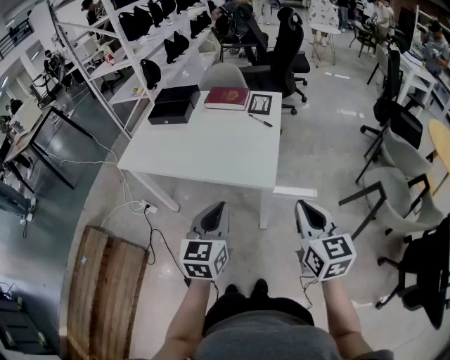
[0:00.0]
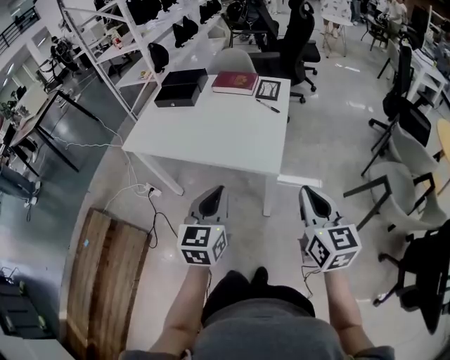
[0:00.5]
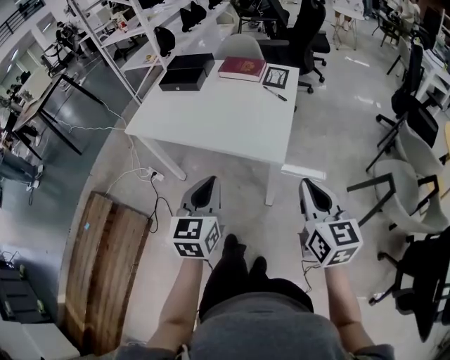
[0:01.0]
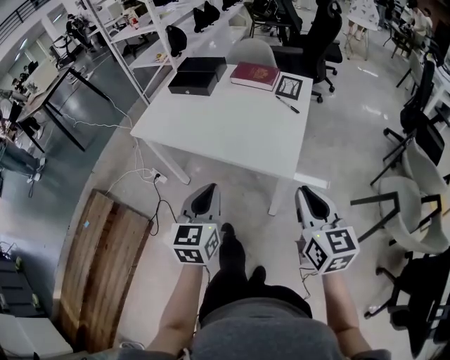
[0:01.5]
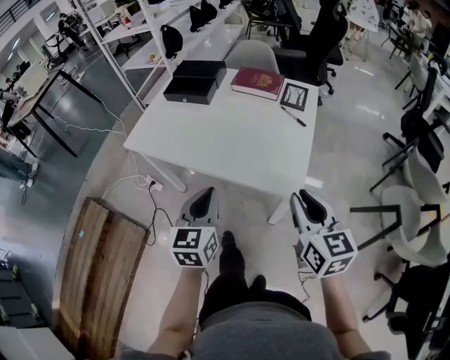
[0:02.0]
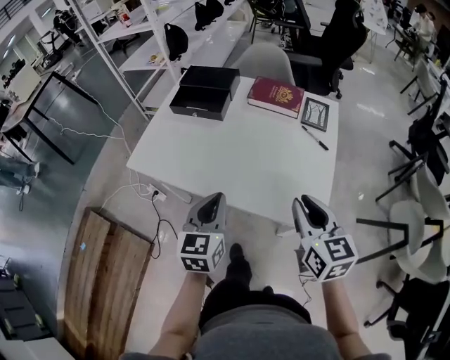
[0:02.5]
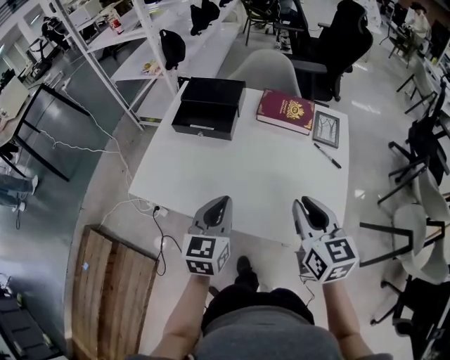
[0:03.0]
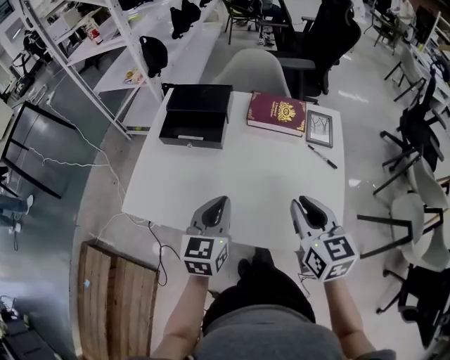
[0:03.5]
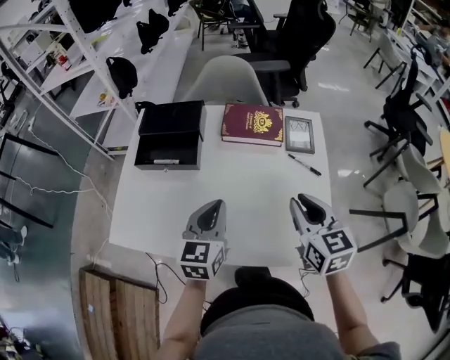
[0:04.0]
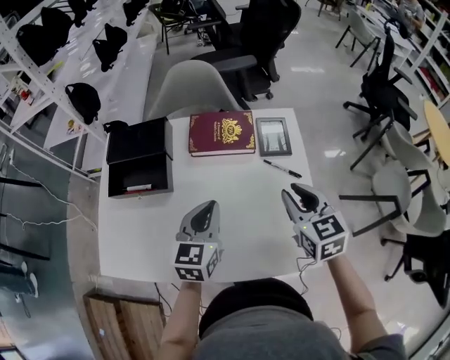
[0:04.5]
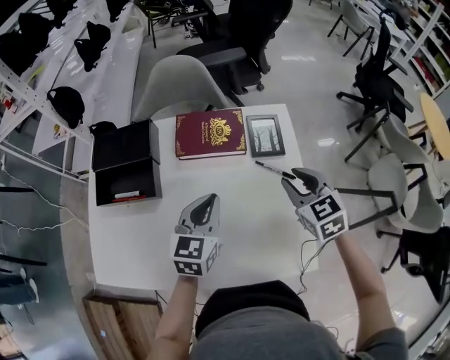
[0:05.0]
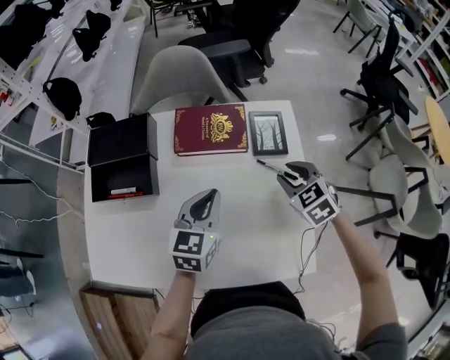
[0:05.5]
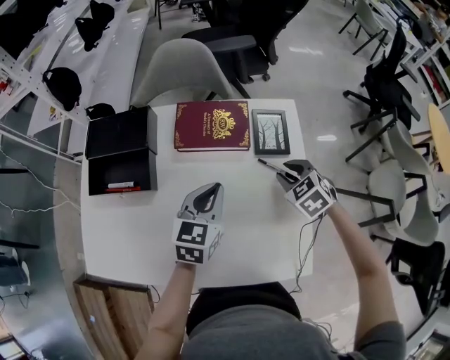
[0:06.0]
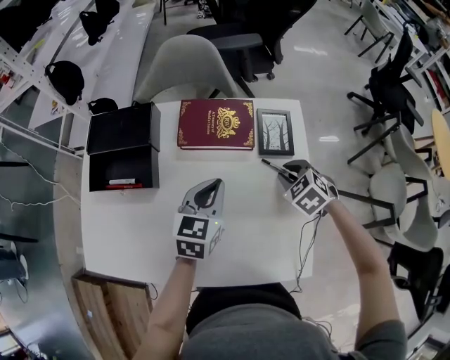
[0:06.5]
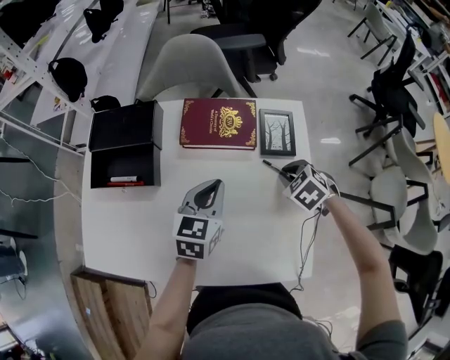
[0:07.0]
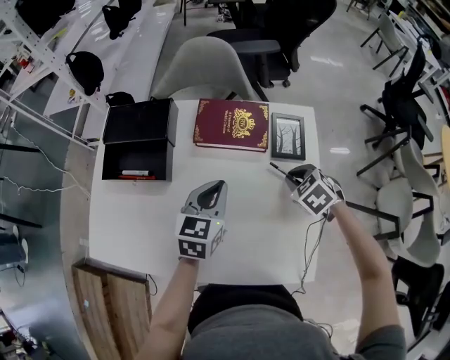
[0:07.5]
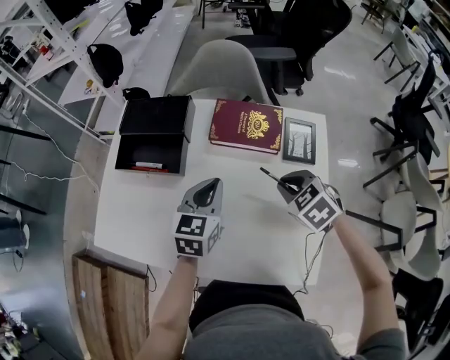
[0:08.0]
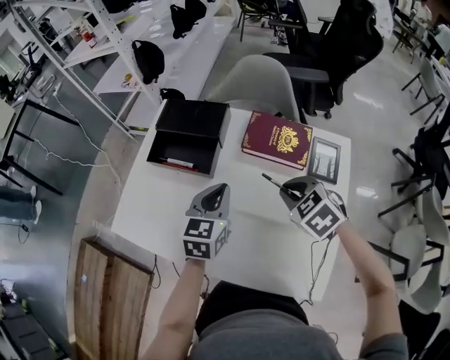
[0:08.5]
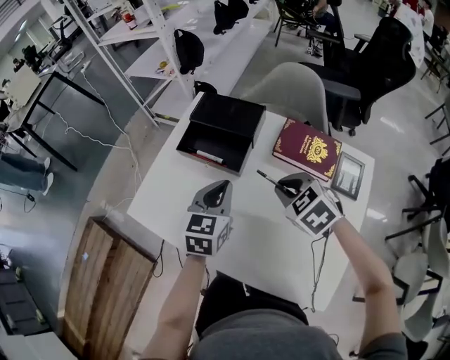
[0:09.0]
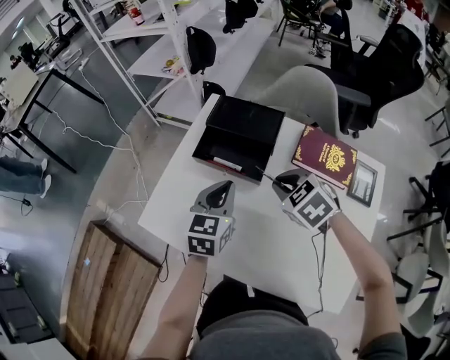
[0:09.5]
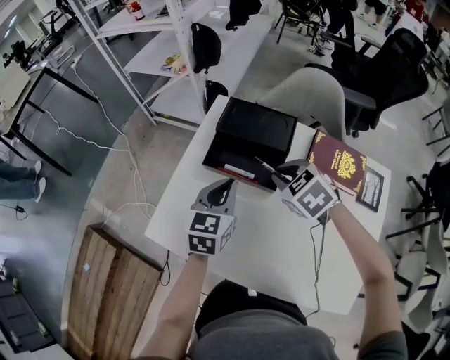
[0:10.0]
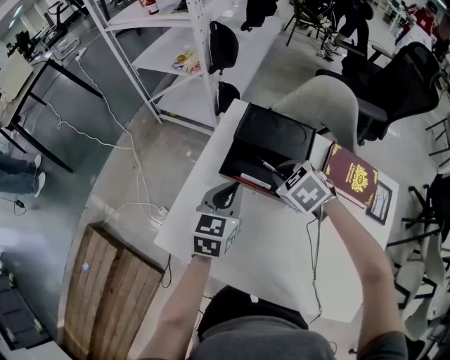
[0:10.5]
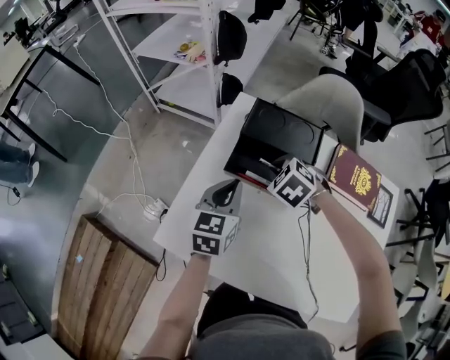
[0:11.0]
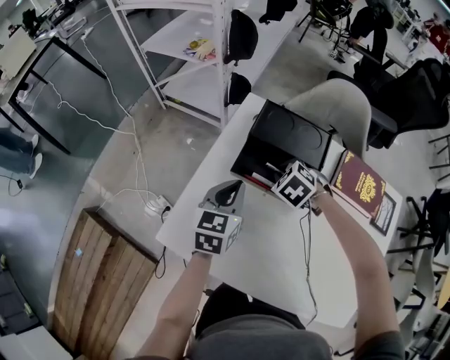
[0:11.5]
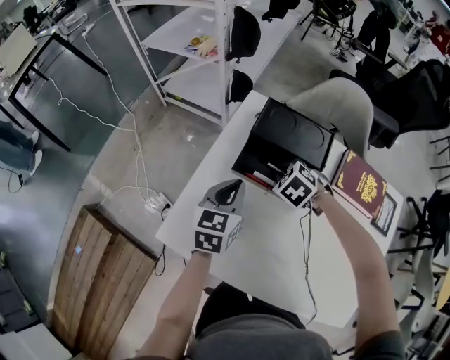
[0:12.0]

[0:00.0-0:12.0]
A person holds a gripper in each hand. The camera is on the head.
0:00.0 to 0:02.0: The two grippers go approximately 15 cm forward and to the left.
0:02.0 to 0:04.0: Both grippers travel together forward, about 25 cm.
0:04.0 to 0:06.0: The left gripper heads forward and to the right, covering some 15 cm. Meanwhile the right gripper goes roughly 25 cm forward, downward and to the right, and points its fingers approximately 30 degrees further downward.
0:06.0 to 0:08.0: The two grippers go roughly 10 cm to the left.
0:08.0 to 0:10.0: The grippers both shift to the left and forward by roughly 25 cm.
0:10.0 to 0:12.0: The right gripper shifts roughly 15 cm downward, forward and to the left. Meanwhile the left gripper goes approximately 5 cm to the left.

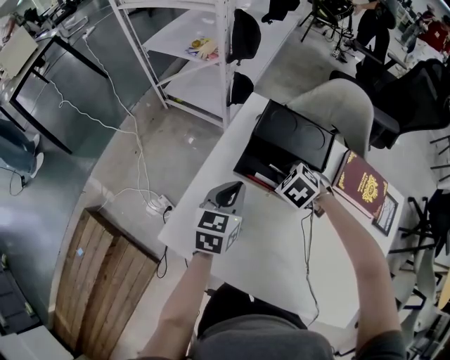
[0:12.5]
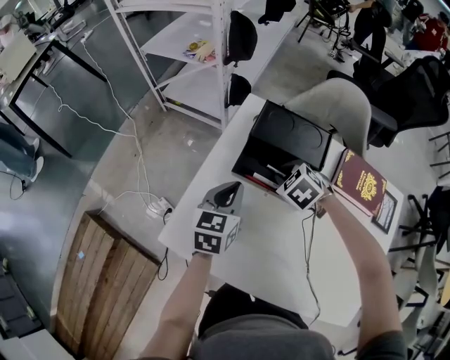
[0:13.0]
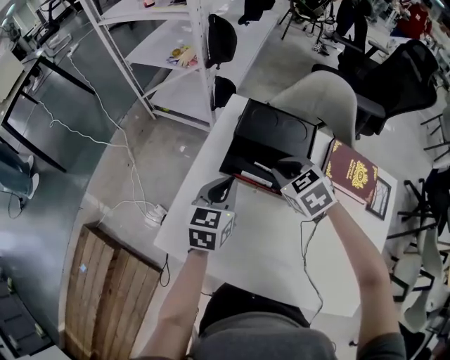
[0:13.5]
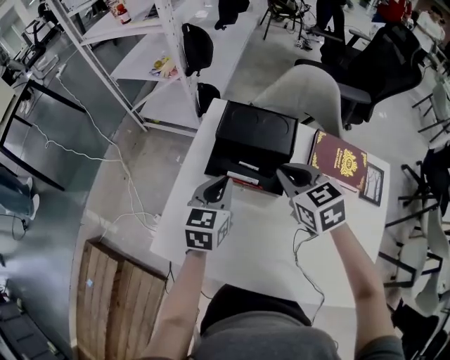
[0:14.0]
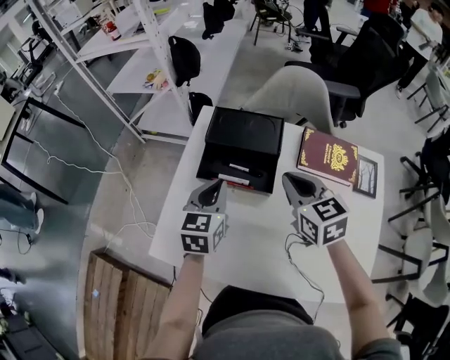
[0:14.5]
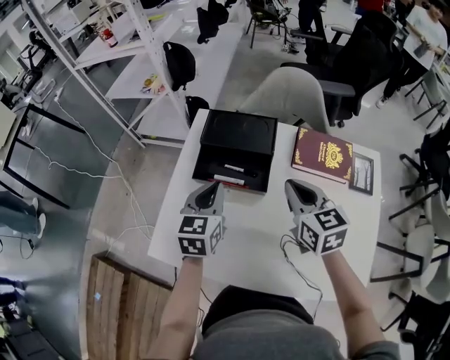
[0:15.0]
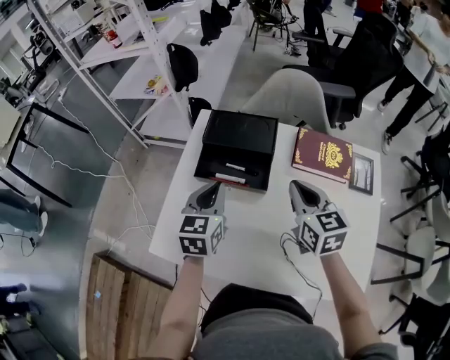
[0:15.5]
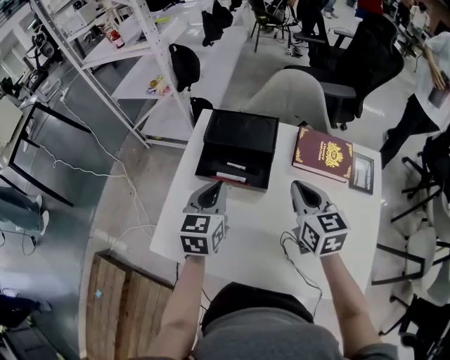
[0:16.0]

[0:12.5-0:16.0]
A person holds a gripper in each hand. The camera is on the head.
0:12.5 to 0:14.5: The left gripper shifts some 5 cm to the right. The right gripper travels upward, to the right and backward by approximately 20 cm, and points its fingers approximately 40 degrees further upward.
0:14.5 to 0:16.0: The right gripper ends up roughly 5 cm from where it was.

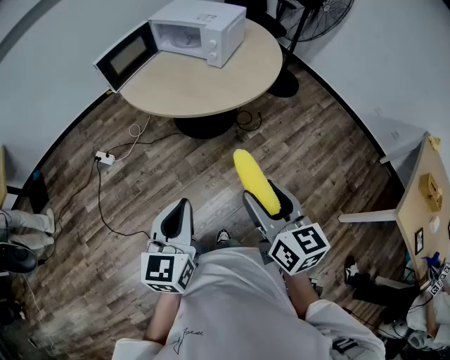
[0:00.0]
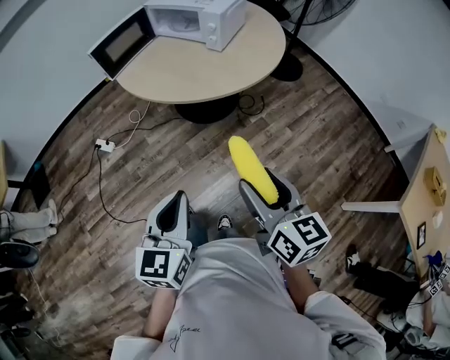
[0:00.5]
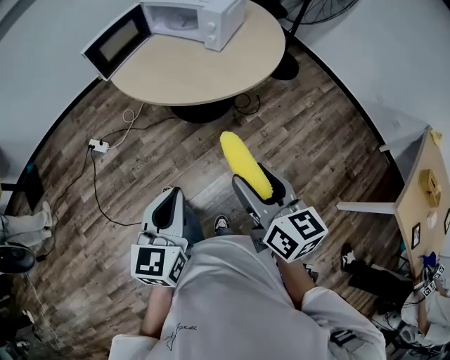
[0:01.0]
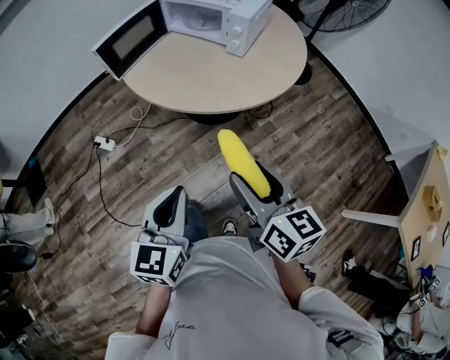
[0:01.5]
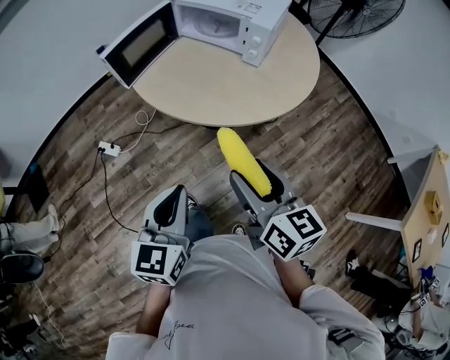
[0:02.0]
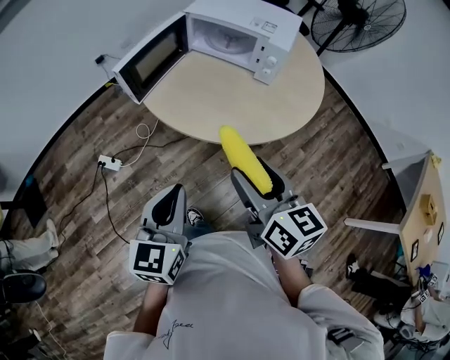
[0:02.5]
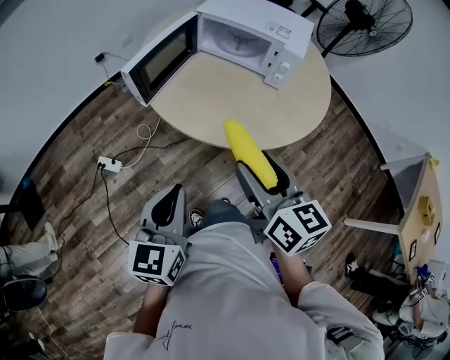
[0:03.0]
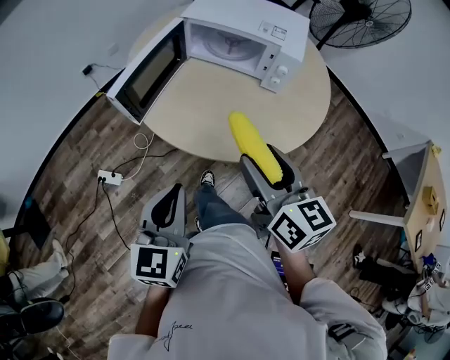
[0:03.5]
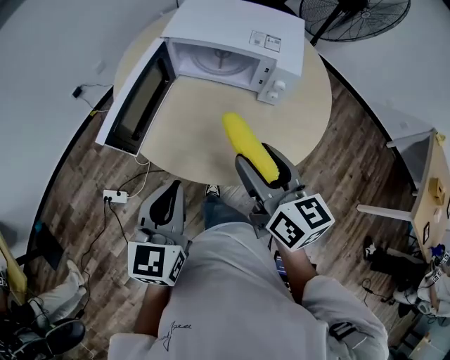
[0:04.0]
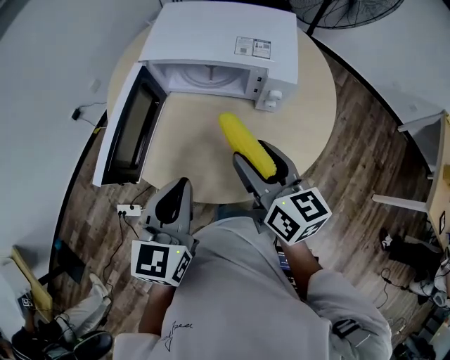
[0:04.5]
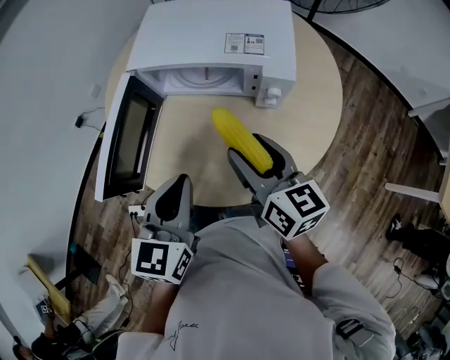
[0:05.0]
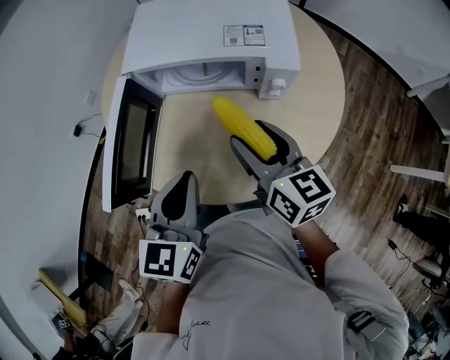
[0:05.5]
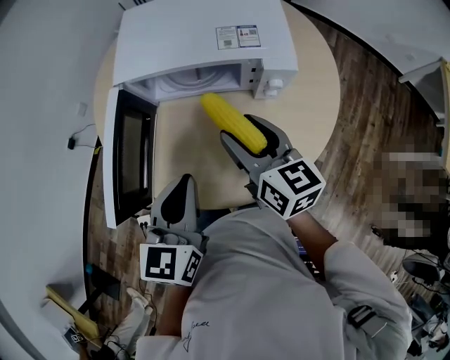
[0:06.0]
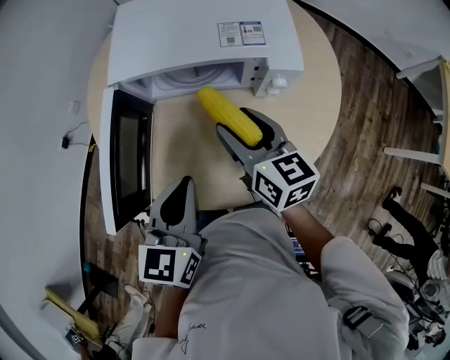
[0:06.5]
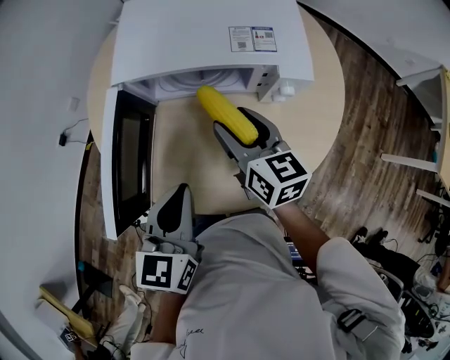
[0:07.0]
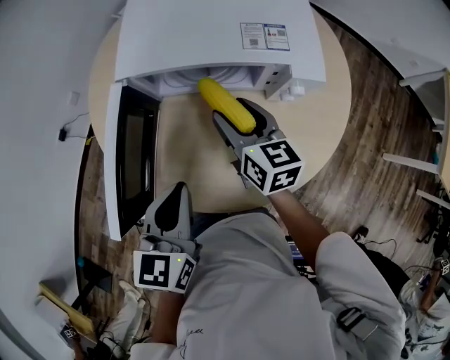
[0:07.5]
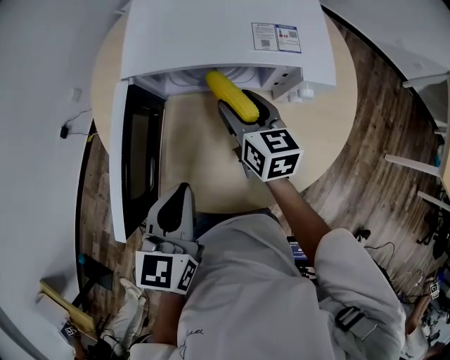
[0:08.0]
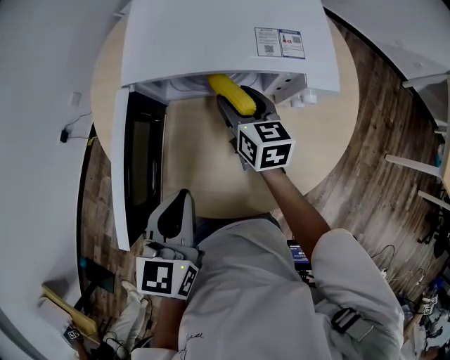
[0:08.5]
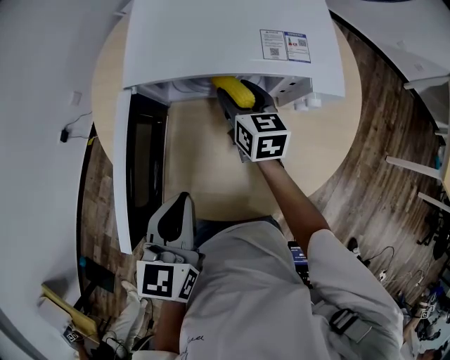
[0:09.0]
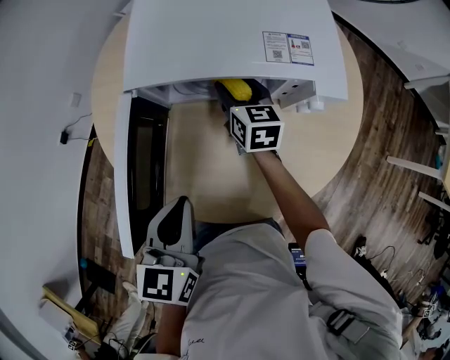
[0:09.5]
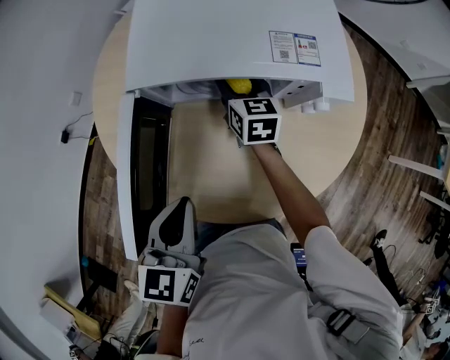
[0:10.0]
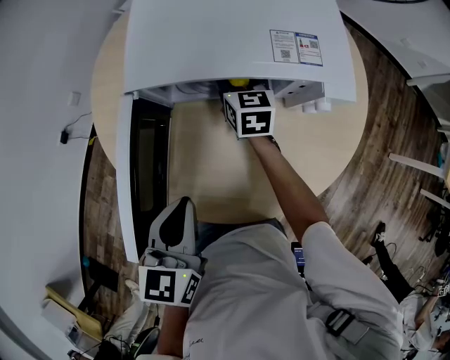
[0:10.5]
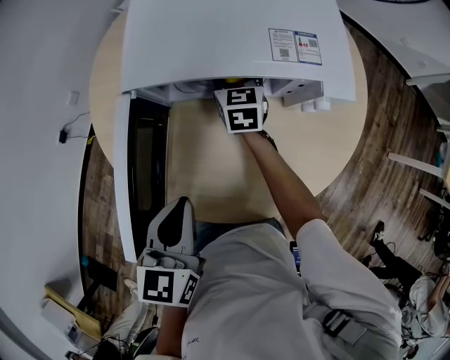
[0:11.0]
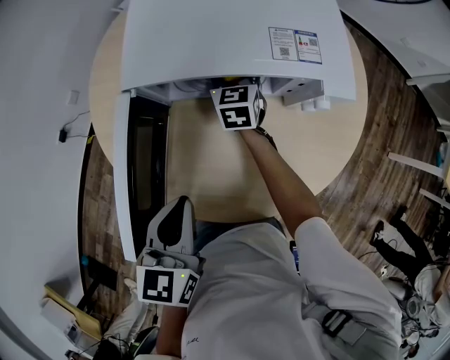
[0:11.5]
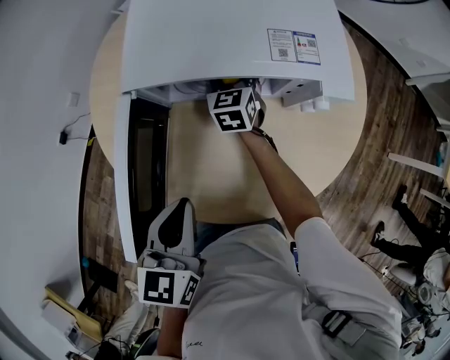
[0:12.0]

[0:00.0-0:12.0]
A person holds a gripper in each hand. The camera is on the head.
0:00.0 to 0:02.0: The two grippers go some 25 cm forward and to the left.
0:02.0 to 0:04.0: The two grippers go roughly 30 cm forward.
0:04.0 to 0:06.0: The right gripper shifts approximately 20 cm forward and downward. The left gripper is displaced forward by some 15 cm.
0:06.0 to 0:08.0: The left gripper moves to the left, some 5 cm; the right gripper is displaced forward and downward by about 15 cm.
0:08.0 to 0:10.0: The right gripper shifts some 10 cm forward and downward.
0:10.0 to 0:12.0: The right gripper turns by some 20 degrees.
